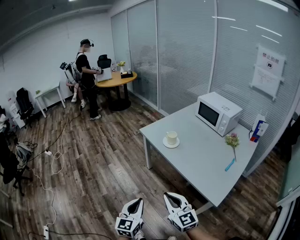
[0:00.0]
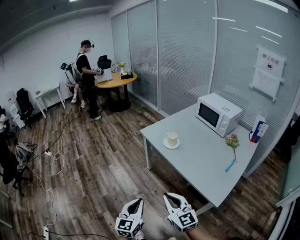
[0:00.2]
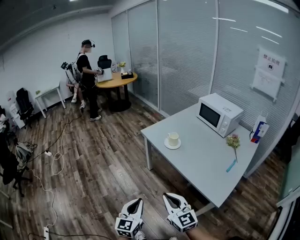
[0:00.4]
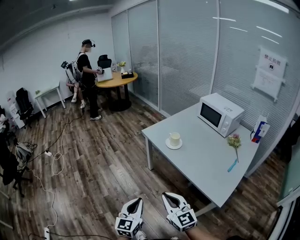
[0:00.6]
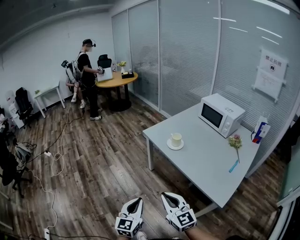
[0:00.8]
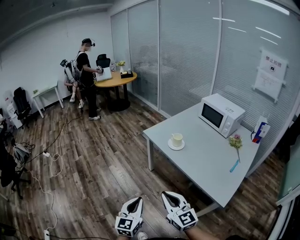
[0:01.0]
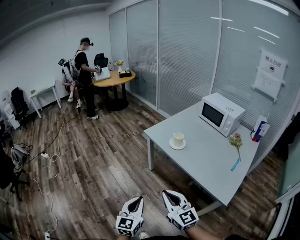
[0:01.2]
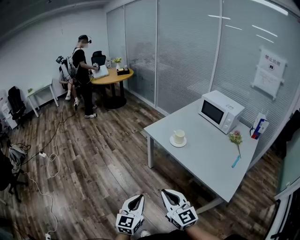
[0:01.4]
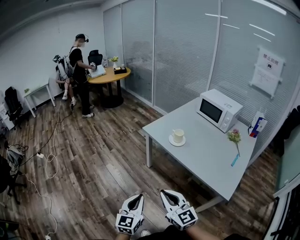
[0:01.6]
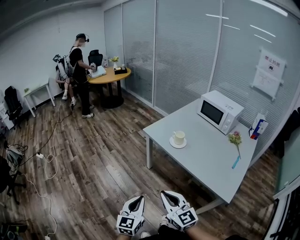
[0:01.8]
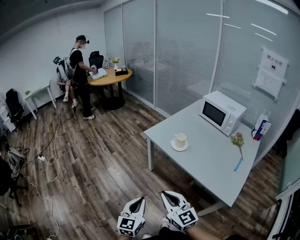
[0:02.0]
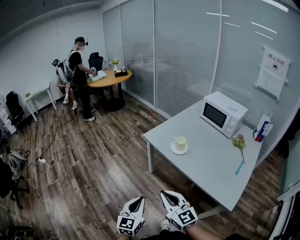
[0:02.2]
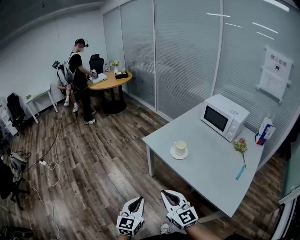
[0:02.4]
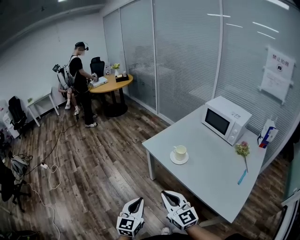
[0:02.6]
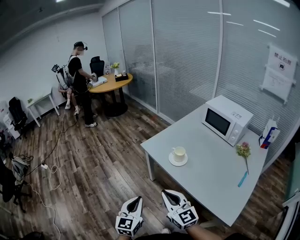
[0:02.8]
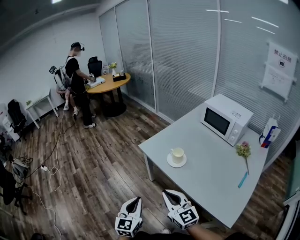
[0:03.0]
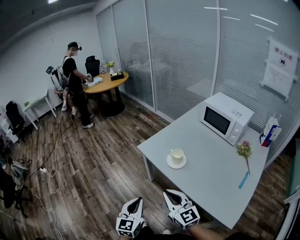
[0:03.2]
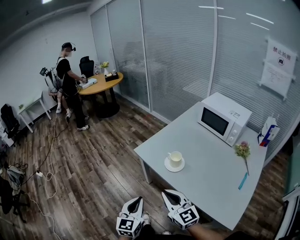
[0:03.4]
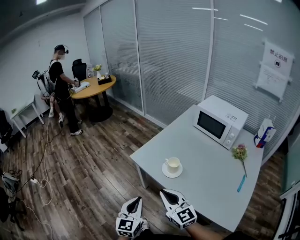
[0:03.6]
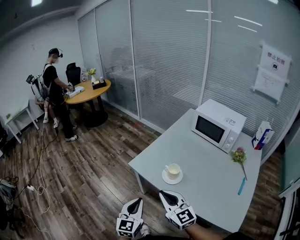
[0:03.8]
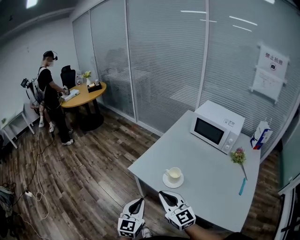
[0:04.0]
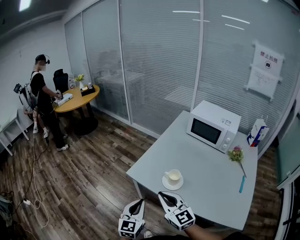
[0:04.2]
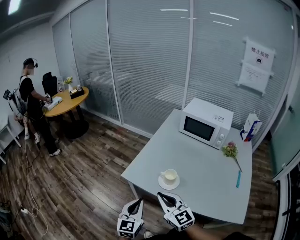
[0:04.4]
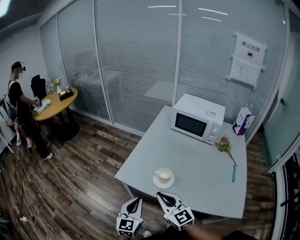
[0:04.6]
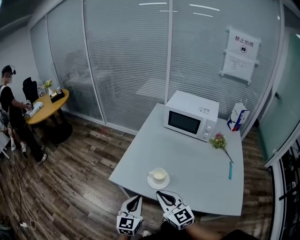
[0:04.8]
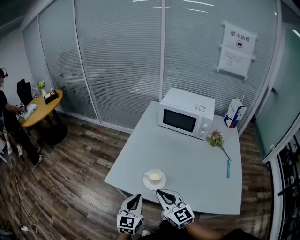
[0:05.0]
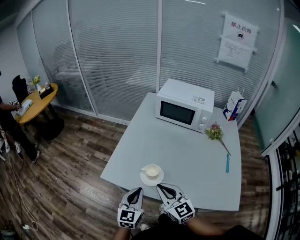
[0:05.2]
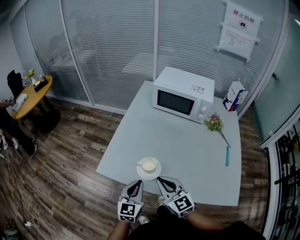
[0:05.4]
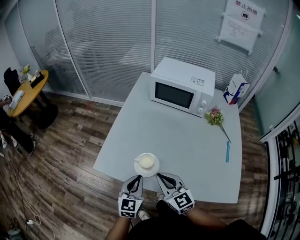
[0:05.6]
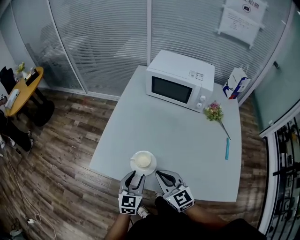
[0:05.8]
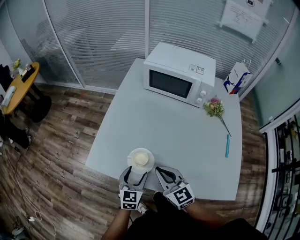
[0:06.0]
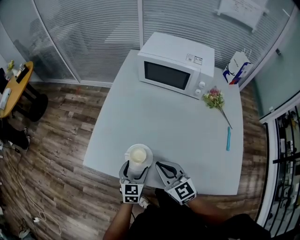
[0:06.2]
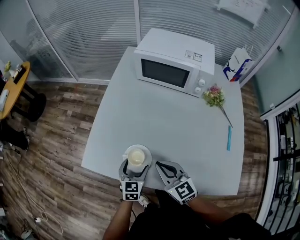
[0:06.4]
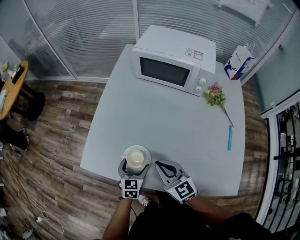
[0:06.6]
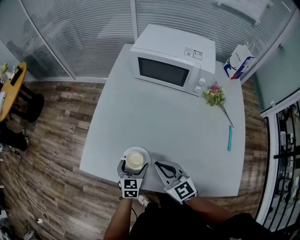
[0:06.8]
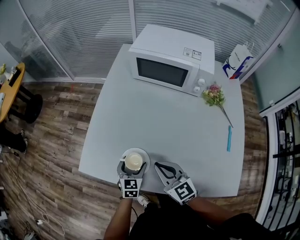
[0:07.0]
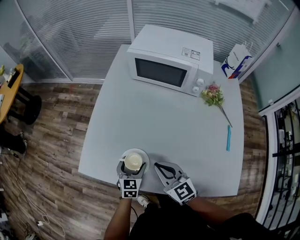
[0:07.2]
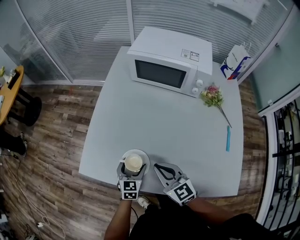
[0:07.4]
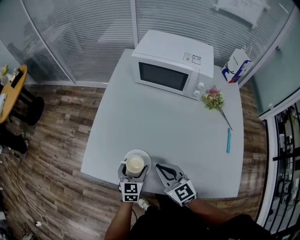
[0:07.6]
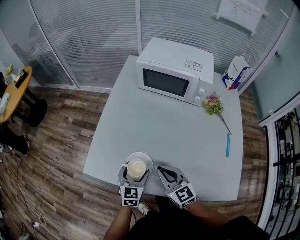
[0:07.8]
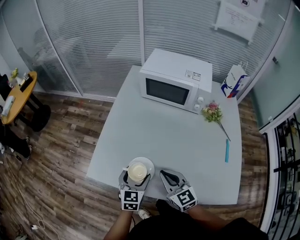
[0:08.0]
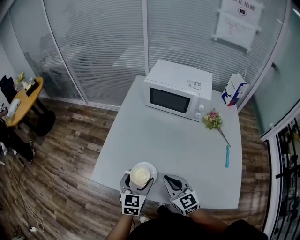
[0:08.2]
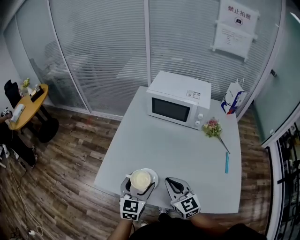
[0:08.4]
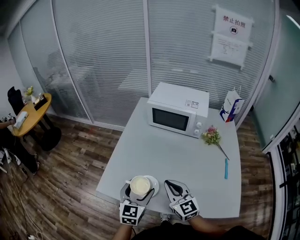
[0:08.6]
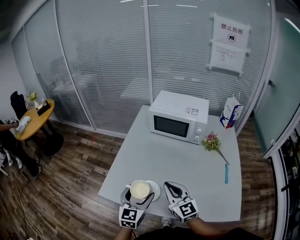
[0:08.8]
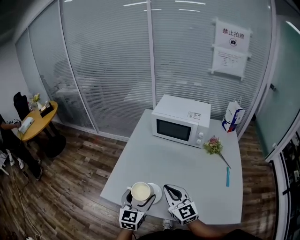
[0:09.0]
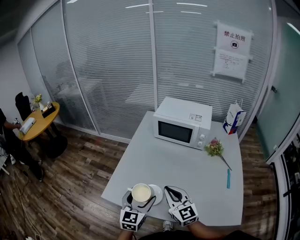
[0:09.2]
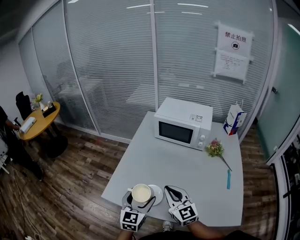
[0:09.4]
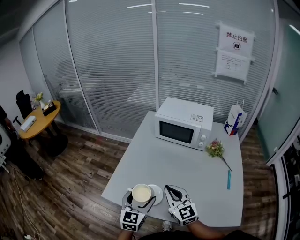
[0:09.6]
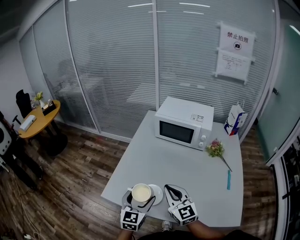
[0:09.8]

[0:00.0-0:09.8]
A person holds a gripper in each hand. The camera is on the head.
0:00.0 to 0:01.4: The left gripper moves to the left and forward, about 10 cm, while the right gripper moves to the left, some 10 cm.
0:01.4 to 0:02.8: Both grippers move forward, about 15 cm.
0:02.8 to 0:04.2: The grippers both shift forward by approximately 20 cm.
0:04.2 to 0:05.6: The right gripper goes about 15 cm to the right, forward and downward; the left gripper goes approximately 20 cm forward, to the right and downward.
0:05.6 to 0:07.0: The left gripper heads downward and forward, covering some 15 cm, and opens, while the right gripper travels forward, downward and to the right by about 10 cm.
0:07.0 to 0:08.4: The left gripper goes some 20 cm upward. The right gripper heads upward, covering about 5 cm.
0:08.4 to 0:09.8: The right gripper moves upward, some 5 cm.

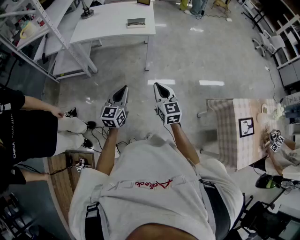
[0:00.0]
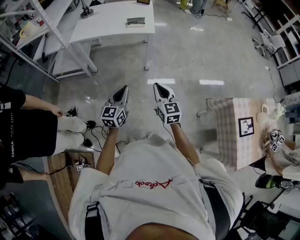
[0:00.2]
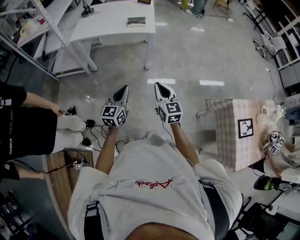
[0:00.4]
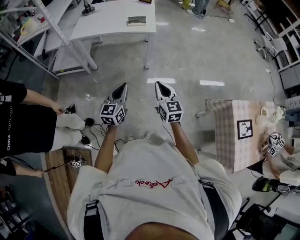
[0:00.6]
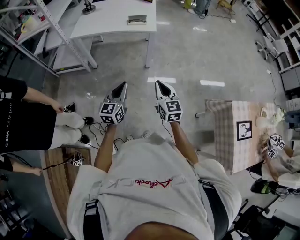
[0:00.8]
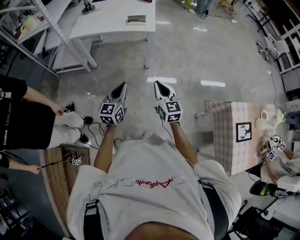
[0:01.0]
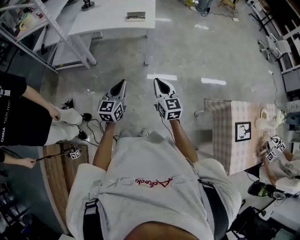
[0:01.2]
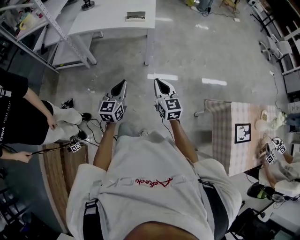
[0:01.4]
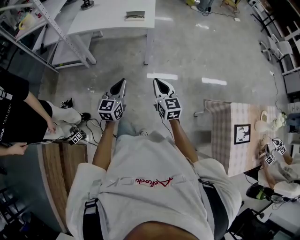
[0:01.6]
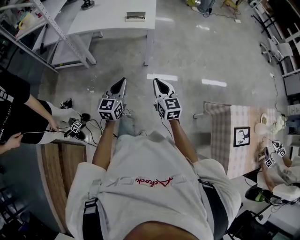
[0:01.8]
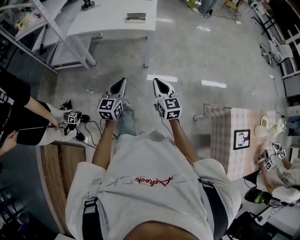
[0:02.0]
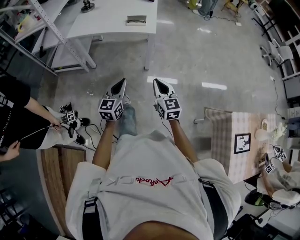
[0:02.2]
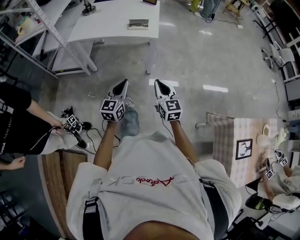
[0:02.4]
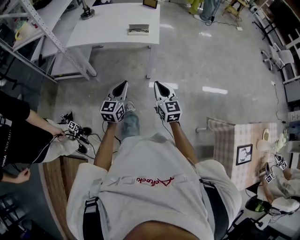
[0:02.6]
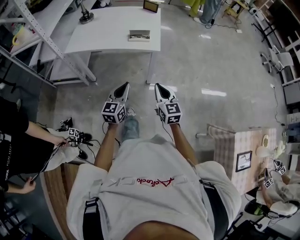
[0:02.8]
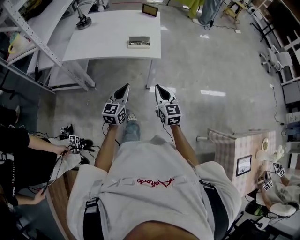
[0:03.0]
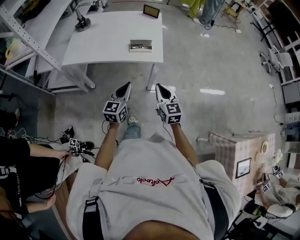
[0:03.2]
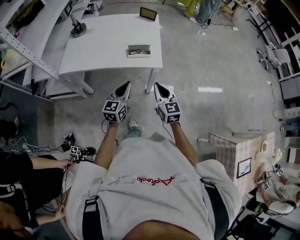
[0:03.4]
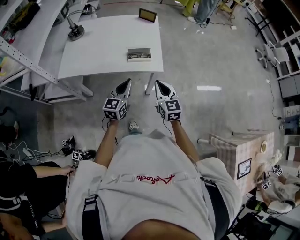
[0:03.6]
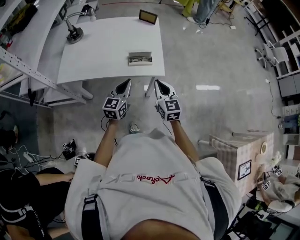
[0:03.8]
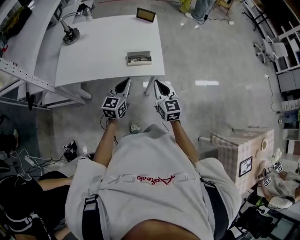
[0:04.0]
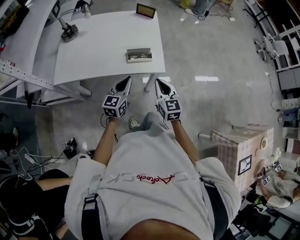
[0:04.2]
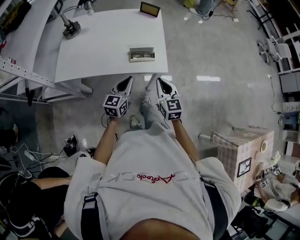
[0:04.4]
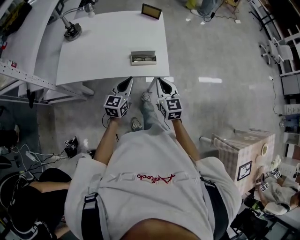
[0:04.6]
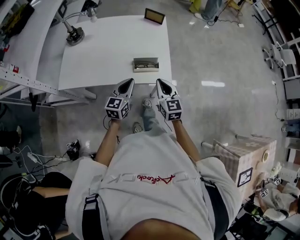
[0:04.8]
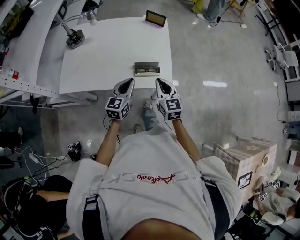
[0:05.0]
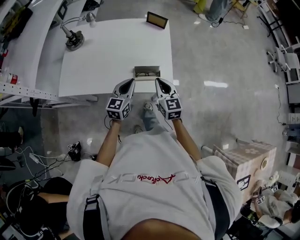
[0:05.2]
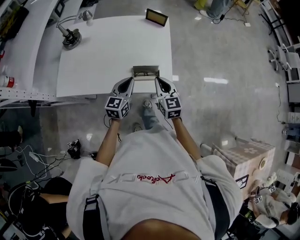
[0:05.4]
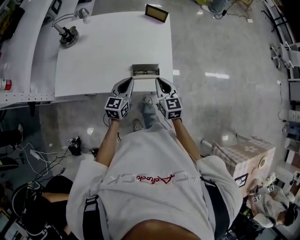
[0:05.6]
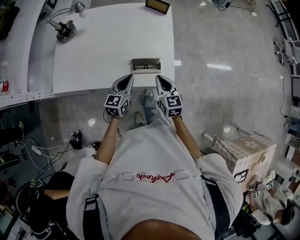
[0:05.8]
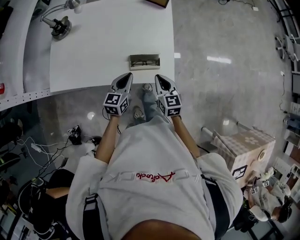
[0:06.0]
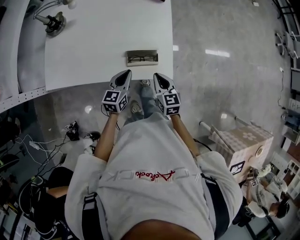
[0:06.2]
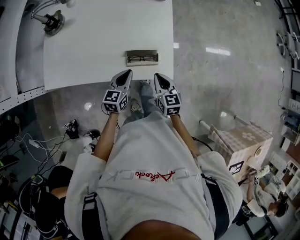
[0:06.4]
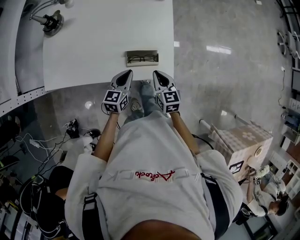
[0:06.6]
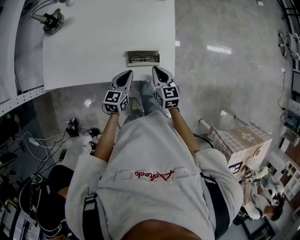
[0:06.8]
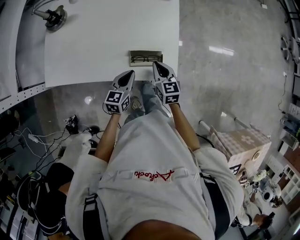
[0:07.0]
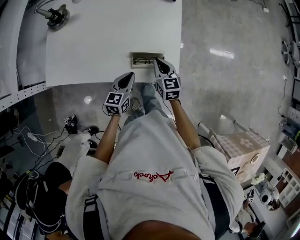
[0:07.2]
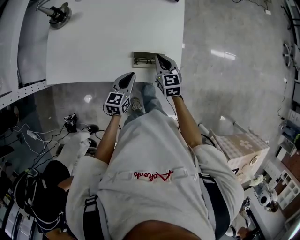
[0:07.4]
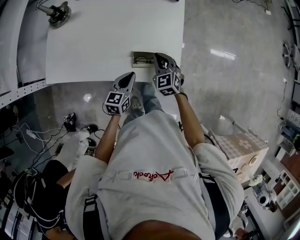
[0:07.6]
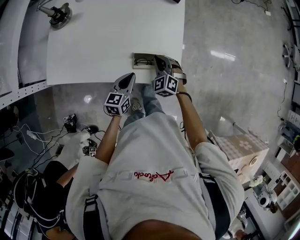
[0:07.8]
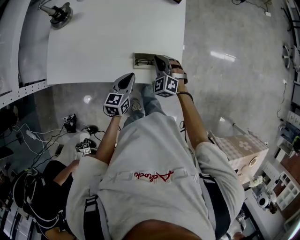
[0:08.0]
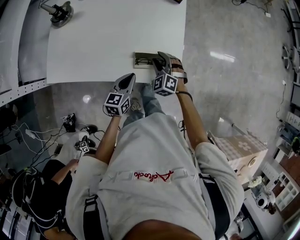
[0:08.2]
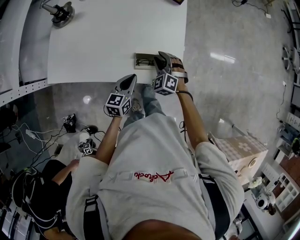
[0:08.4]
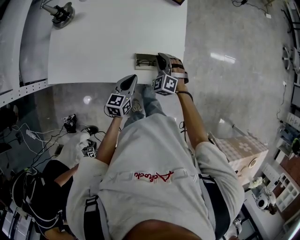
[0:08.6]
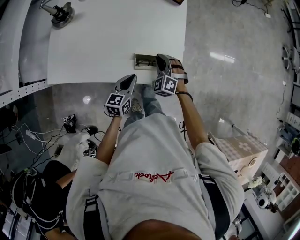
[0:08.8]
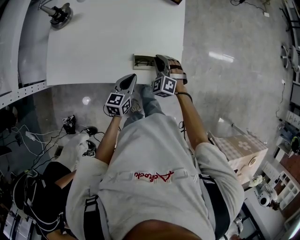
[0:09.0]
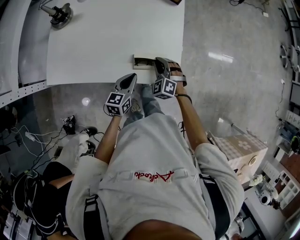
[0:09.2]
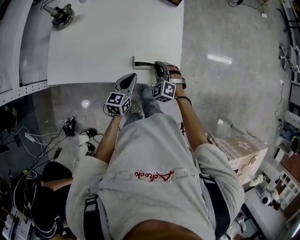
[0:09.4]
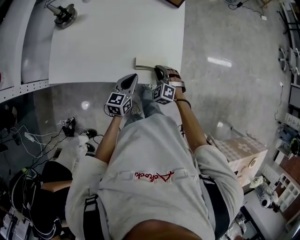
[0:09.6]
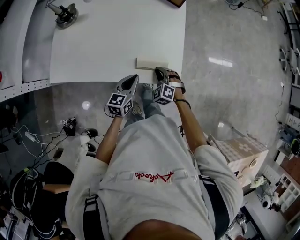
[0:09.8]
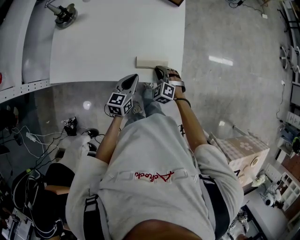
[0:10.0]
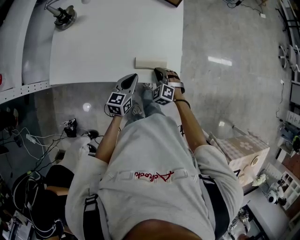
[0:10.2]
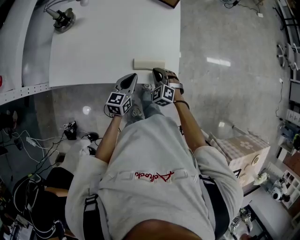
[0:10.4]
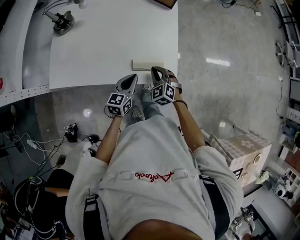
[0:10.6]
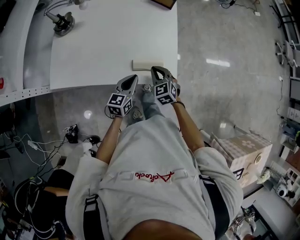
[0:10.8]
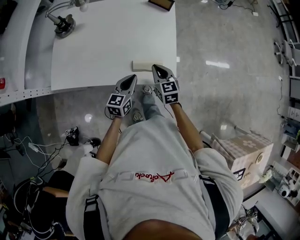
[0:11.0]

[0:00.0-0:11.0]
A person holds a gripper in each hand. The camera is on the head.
0:00.0 to 0:01.6: The left gripper ends up roughly 5 cm from where it was; the right gripper goes approximately 5 cm to the right.
0:01.6 to 0:03.2: The two grippers go some 30 cm forward.
0:03.2 to 0:04.8: The two grippers go approximately 20 cm forward.
0:04.8 to 0:06.2: The two grippers go some 10 cm downward and forward.
0:06.2 to 0:07.8: The right gripper is displaced forward by some 10 cm, and rolls counterclockwise, seen from behind, by approximately 50 degrees.
0:07.8 to 0:09.4: The right gripper opens, then closes again.
0:09.4 to 0:11.0: The right gripper moves upward, about 5 cm, and rotates around the line of its fingers by some 50 degrees, clockwise from behind.

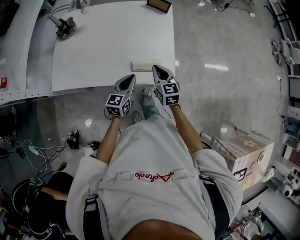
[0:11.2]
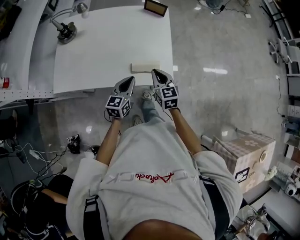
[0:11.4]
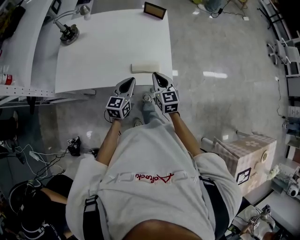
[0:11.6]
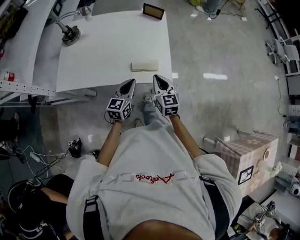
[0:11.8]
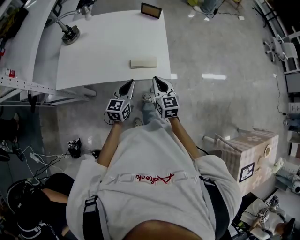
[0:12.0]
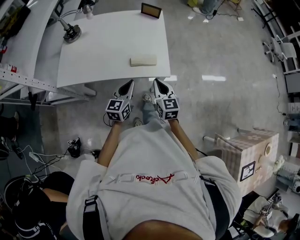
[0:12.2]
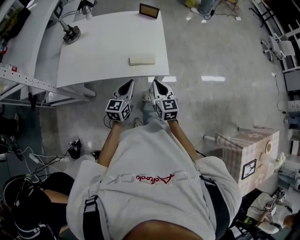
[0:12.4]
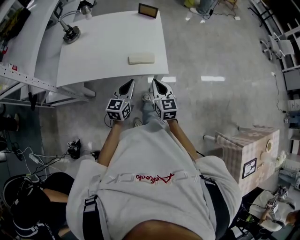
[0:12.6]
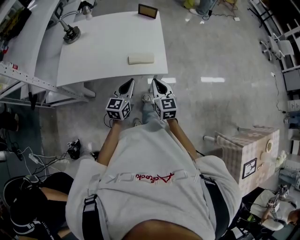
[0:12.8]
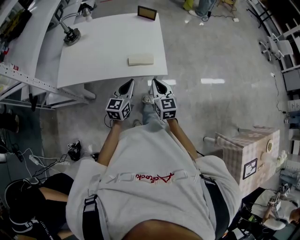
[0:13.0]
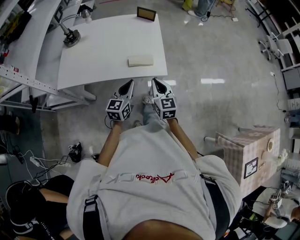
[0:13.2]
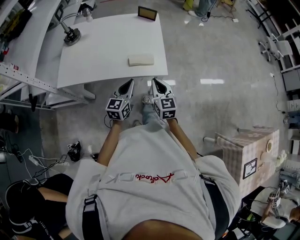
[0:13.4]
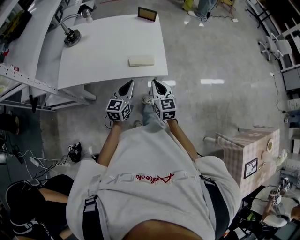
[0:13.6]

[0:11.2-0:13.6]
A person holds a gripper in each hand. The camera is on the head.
0:11.2 to 0:12.4: The right gripper heads backward, covering about 15 cm; the left gripper moves backward and upward, approximately 10 cm.
0:12.4 to 0:13.6: The grippers stay close to where they were, moving slightly.
